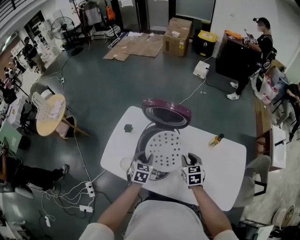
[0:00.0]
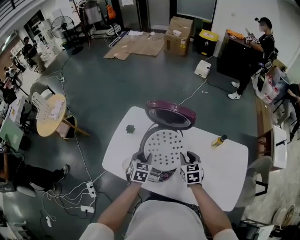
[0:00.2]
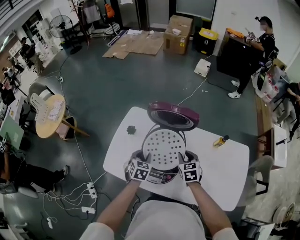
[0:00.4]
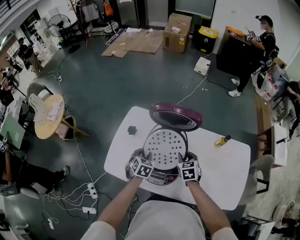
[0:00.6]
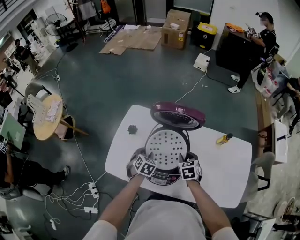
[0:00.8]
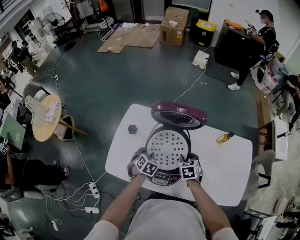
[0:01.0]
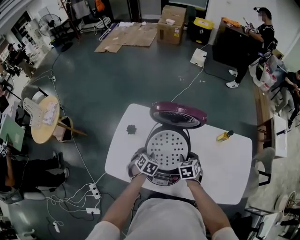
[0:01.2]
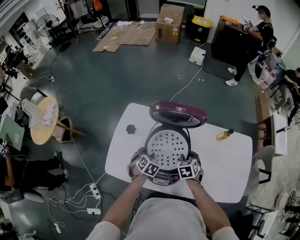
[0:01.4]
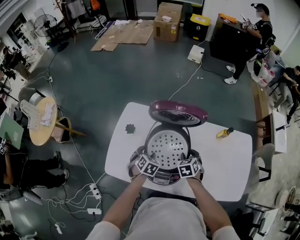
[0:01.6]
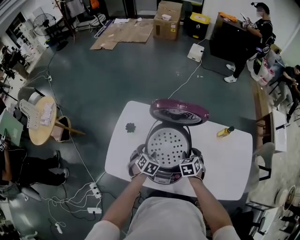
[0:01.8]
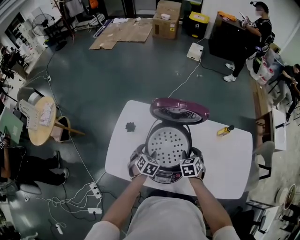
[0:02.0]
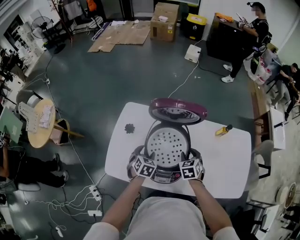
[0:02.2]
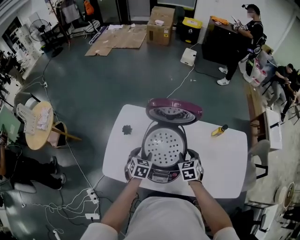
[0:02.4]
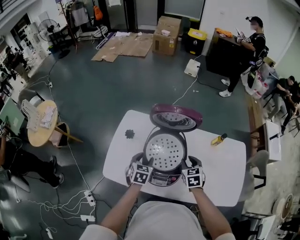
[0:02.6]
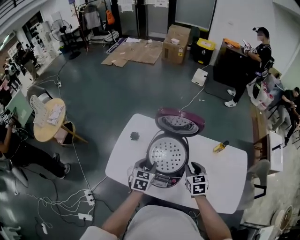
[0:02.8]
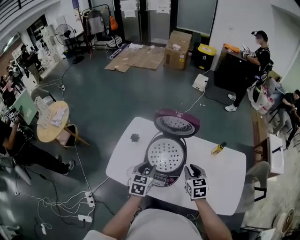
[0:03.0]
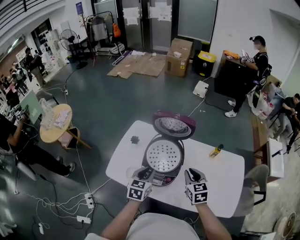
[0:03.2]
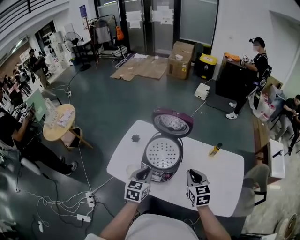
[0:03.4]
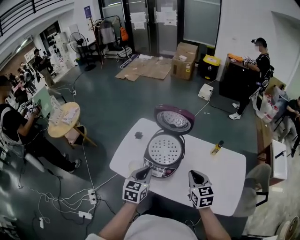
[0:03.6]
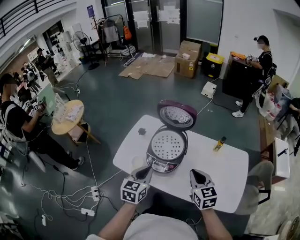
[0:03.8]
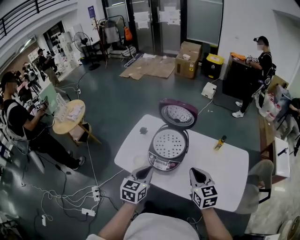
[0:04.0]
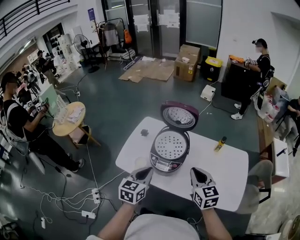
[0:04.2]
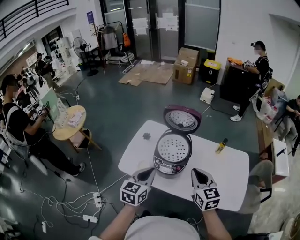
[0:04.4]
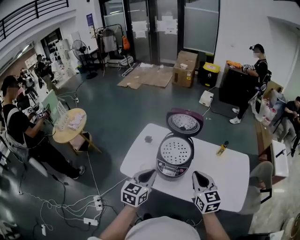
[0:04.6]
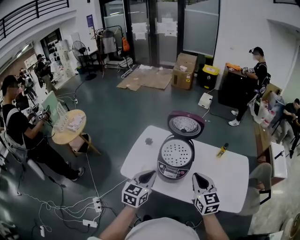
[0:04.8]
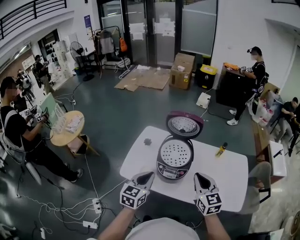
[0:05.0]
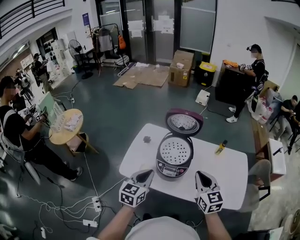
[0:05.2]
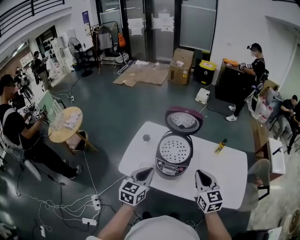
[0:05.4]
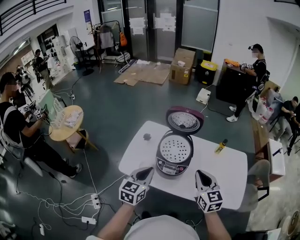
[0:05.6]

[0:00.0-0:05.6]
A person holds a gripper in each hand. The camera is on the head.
0:00.0 to 0:01.4: The left gripper heads downward, to the left and forward, covering about 10 cm, and swivels roughly 20 degrees, while the right gripper moves downward and to the left, some 10 cm, and swivels roughly 20 degrees.
0:01.4 to 0:02.8: The left gripper is displaced upward and backward by some 10 cm, and rotates approximately 30 degrees, while the right gripper shifts roughly 10 cm upward.
0:02.8 to 0:04.2: The two grippers go some 25 cm backward and upward. The right gripper changes its angle by roughly 20 degrees, and closes up. The left gripper closes its fingers.
0:04.2 to 0:05.6: The left gripper travels to the left by some 5 cm.

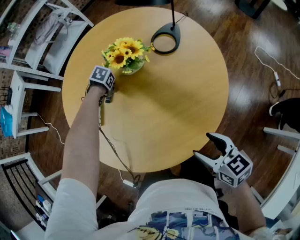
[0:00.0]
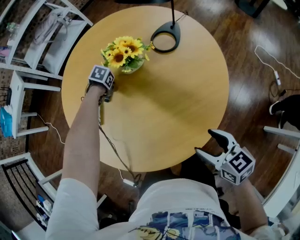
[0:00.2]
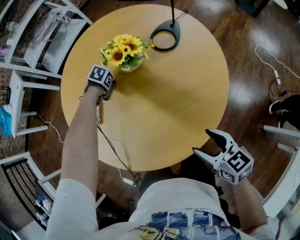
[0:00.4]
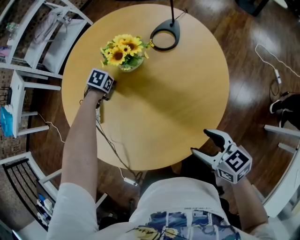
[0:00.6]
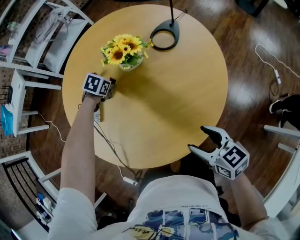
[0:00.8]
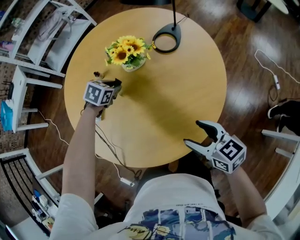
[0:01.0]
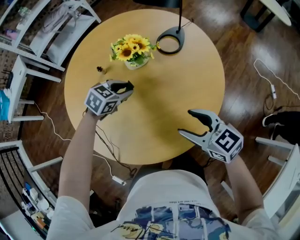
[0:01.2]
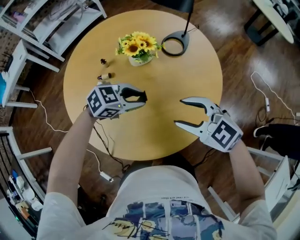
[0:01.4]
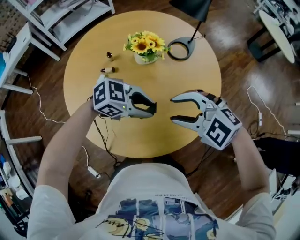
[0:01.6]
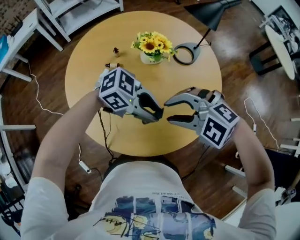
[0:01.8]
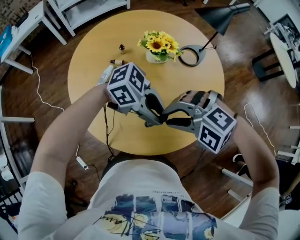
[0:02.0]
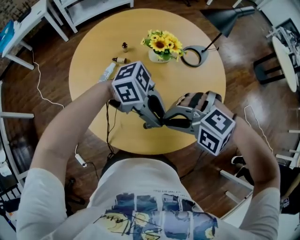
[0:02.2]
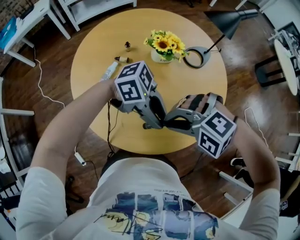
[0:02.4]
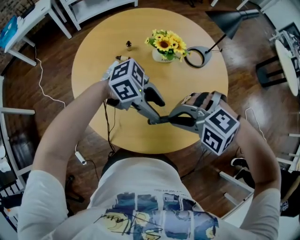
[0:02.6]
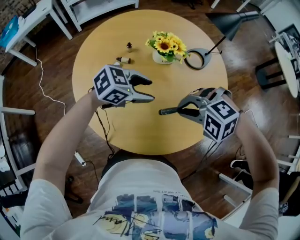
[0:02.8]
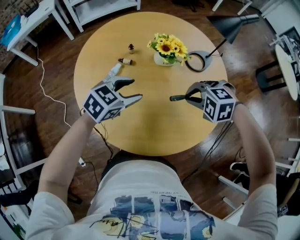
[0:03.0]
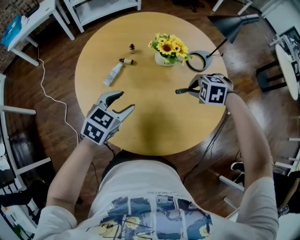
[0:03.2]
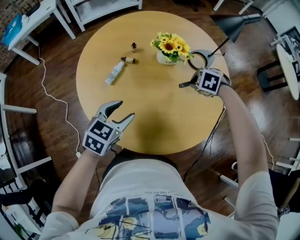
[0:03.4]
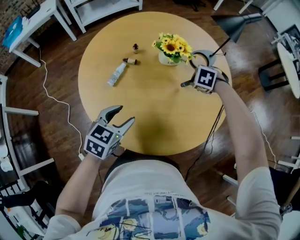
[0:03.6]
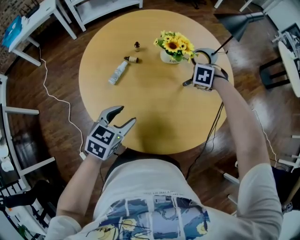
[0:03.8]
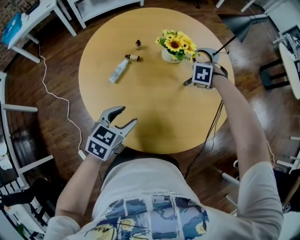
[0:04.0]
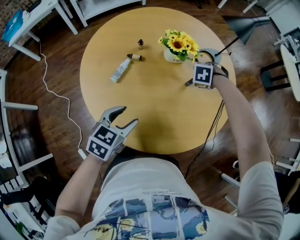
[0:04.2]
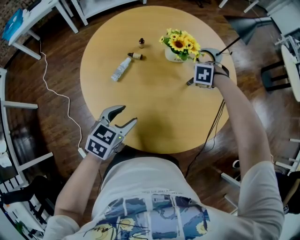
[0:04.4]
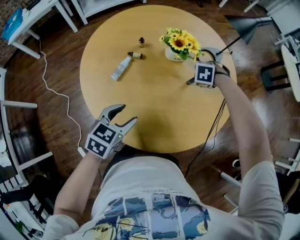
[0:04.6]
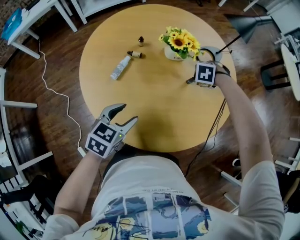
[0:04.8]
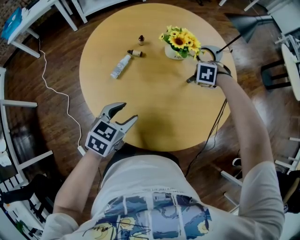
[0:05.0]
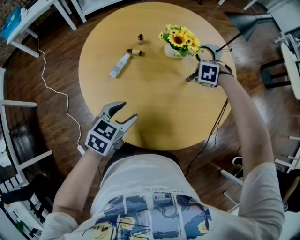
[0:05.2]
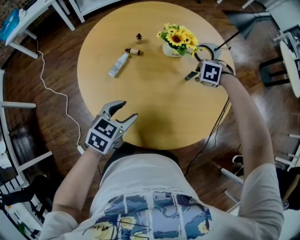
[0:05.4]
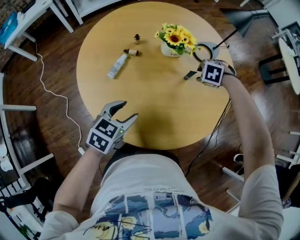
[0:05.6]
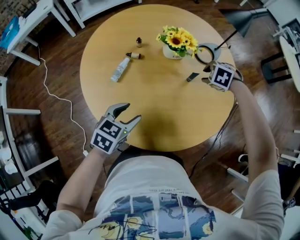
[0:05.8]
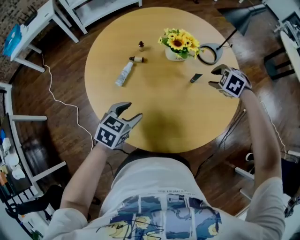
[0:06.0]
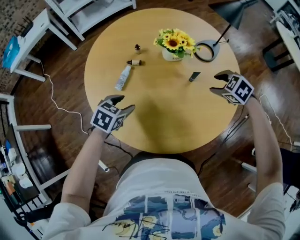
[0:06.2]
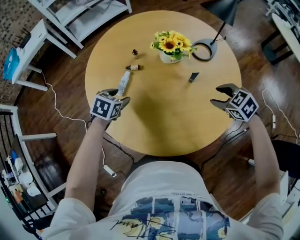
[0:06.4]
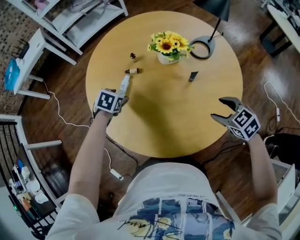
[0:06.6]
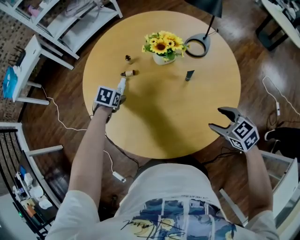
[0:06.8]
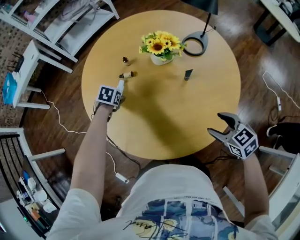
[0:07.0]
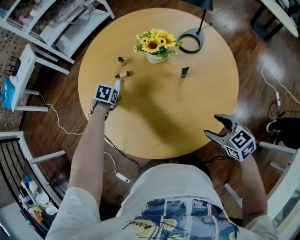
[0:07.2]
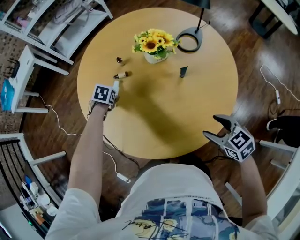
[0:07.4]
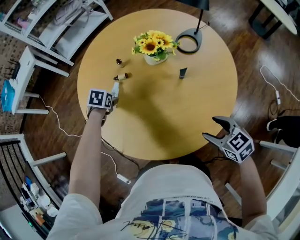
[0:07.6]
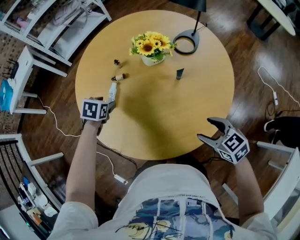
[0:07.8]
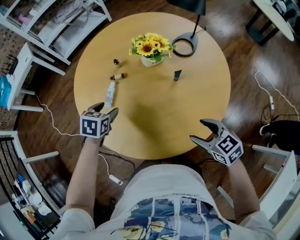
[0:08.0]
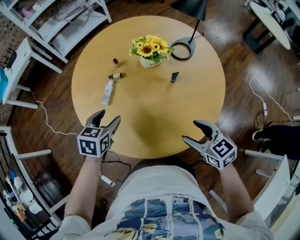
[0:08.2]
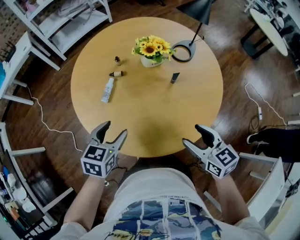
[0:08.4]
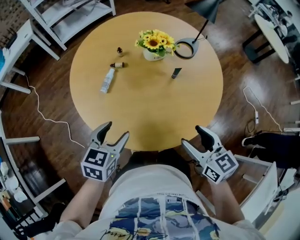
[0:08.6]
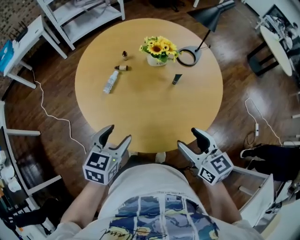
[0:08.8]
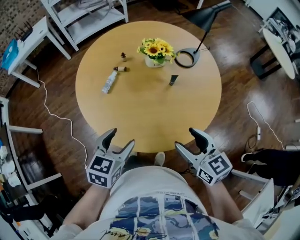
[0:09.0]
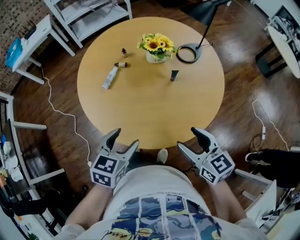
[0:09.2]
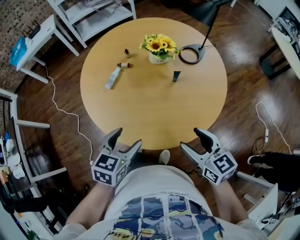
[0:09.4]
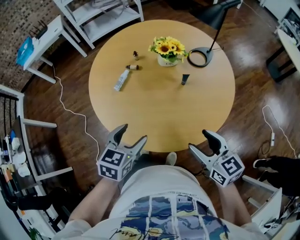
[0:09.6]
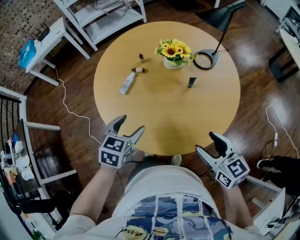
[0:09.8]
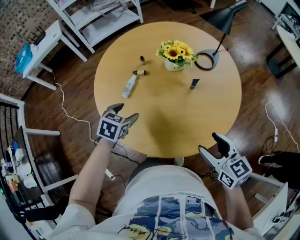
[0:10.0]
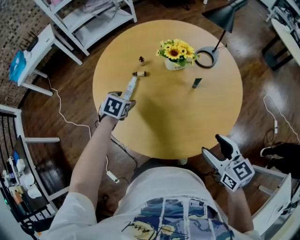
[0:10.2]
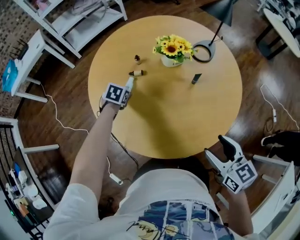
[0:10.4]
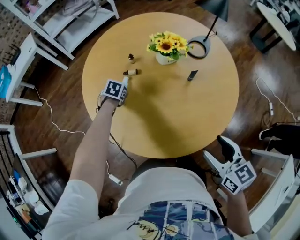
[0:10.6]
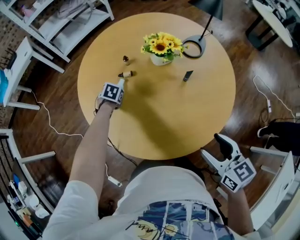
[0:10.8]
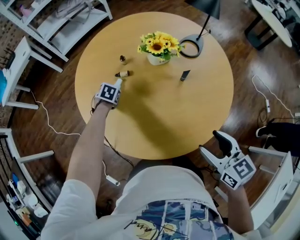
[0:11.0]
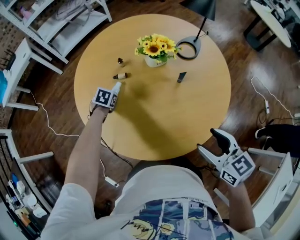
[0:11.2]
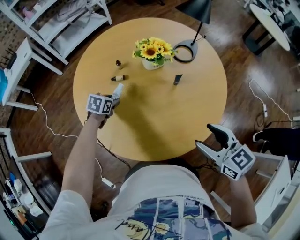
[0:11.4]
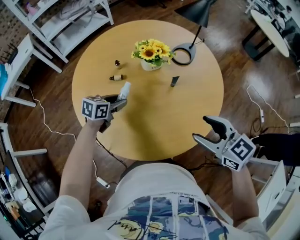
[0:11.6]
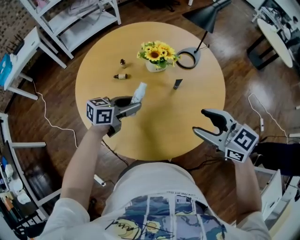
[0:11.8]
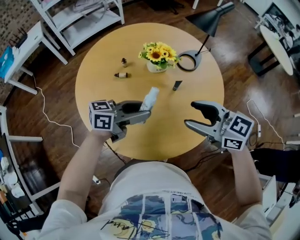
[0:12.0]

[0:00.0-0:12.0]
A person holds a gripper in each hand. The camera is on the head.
0:00.0 to 0:01.6: The left gripper changes place by approximately 40 cm, and tips its fingers upward by roughly 60 degrees. Meanwhile the right gripper ends up roughly 15 cm from where it was, and rotates around the line of its fingers by roughly 70 degrees, counterclockwise from behind.
0:01.6 to 0:03.0: The left gripper changes place by approximately 15 cm, swivels approximately 50 degrees, and opens its fingers; the right gripper heads downward, covering roughly 10 cm, points its fingers roughly 30 degrees further downward, and closes.
0:03.0 to 0:04.4: The left gripper shifts by some 15 cm. The right gripper shifts about 10 cm downward, and swivels about 30 degrees.
0:04.4 to 0:06.0: The right gripper moves upward, about 5 cm, changes its angle by about 30 degrees, and opens its fingers.
0:06.0 to 0:07.6: The left gripper changes place by approximately 25 cm, and swivels approximately 30 degrees. Meanwhile the right gripper moves approximately 20 cm, rolls clockwise, seen from behind, by approximately 40 degrees, and opens.
0:07.6 to 0:09.0: The right gripper shifts about 15 cm upward and backward, and changes its angle by roughly 20 degrees; the left gripper heads backward, upward and to the right, covering about 40 cm, and tips its fingers upward by about 40 degrees.
0:09.0 to 0:10.4: The left gripper travels forward and downward by some 35 cm, and changes its angle by about 30 degrees.
0:10.4 to 0:12.0: The right gripper moves approximately 10 cm, and rotates roughly 30 degrees; the left gripper shifts by roughly 35 cm, and tilts its fingers roughly 60 degrees upward.

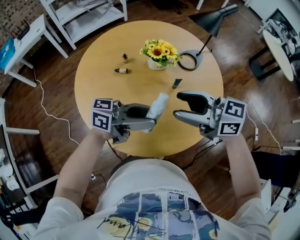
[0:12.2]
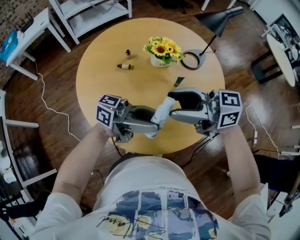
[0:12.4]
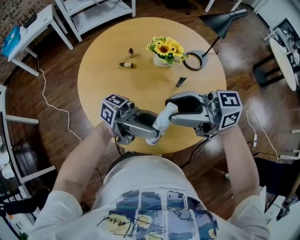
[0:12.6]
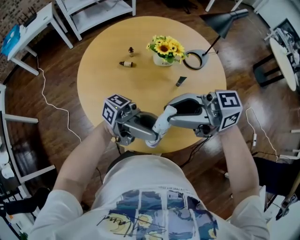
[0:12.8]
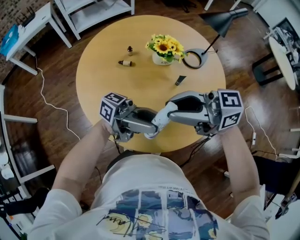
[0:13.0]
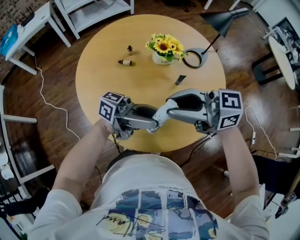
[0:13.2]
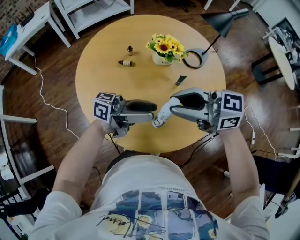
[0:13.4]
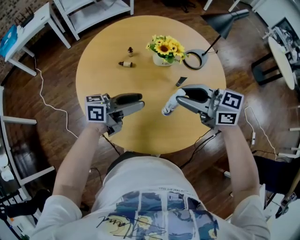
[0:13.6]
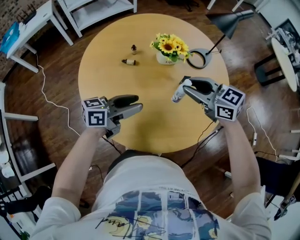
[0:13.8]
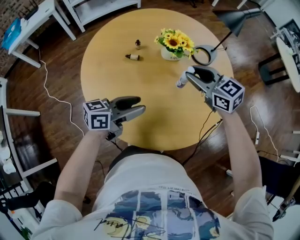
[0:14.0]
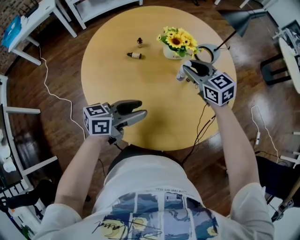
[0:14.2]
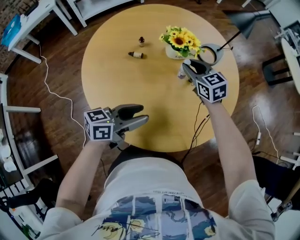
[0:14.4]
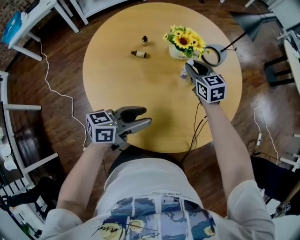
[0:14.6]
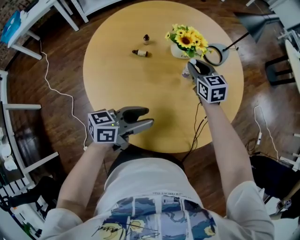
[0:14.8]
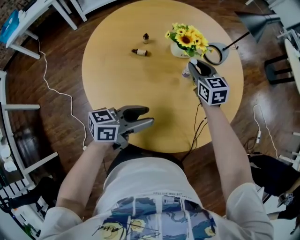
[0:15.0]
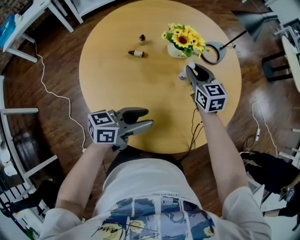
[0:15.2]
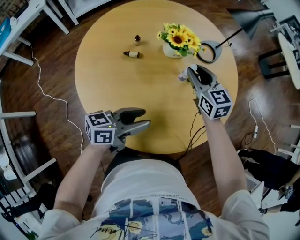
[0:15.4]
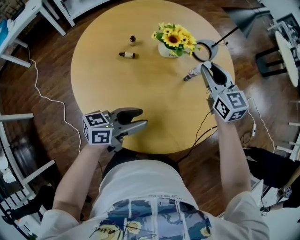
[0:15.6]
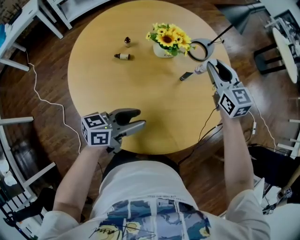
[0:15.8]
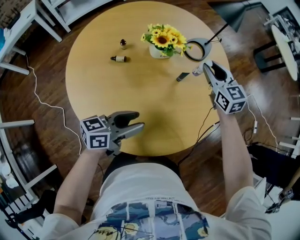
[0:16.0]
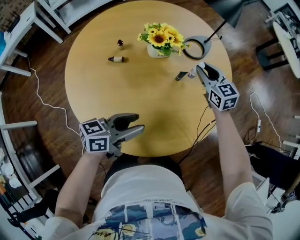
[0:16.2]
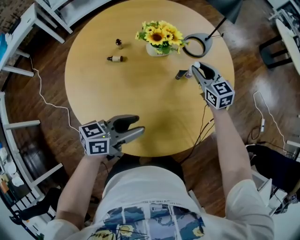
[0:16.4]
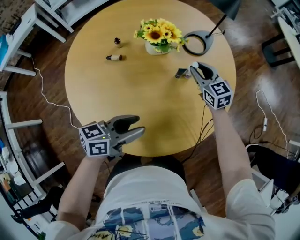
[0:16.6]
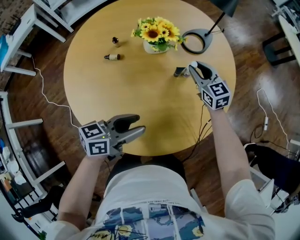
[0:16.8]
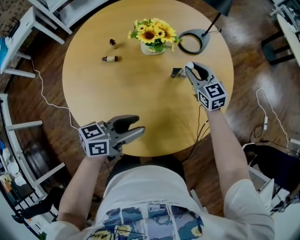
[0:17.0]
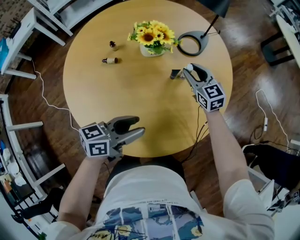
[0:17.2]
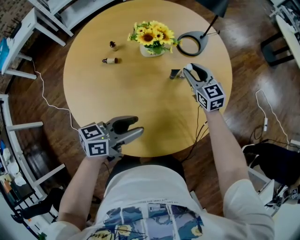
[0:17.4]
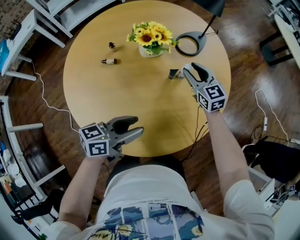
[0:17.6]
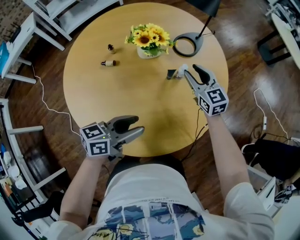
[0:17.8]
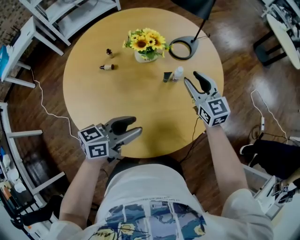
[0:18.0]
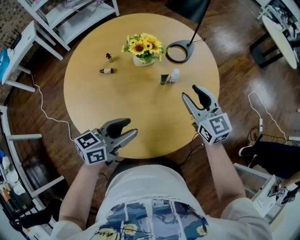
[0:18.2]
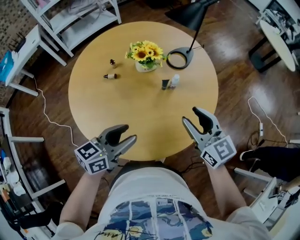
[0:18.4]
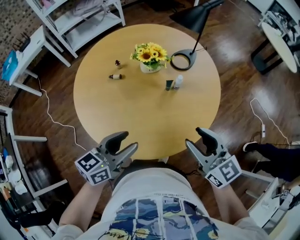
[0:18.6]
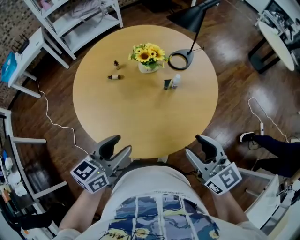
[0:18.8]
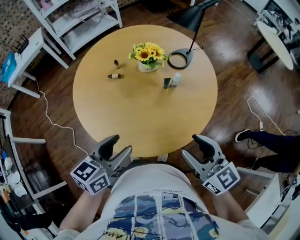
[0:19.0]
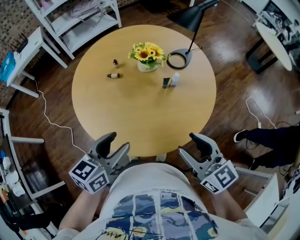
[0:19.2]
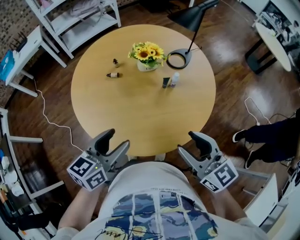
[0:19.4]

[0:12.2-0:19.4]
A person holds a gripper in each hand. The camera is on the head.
0:12.2 to 0:13.6: The right gripper closes up; the left gripper shifts by about 10 cm, and swivels roughly 20 degrees.
0:13.6 to 0:15.0: The left gripper heads downward, covering some 5 cm. Meanwhile the right gripper shifts by about 25 cm, and swivels roughly 40 degrees.
0:15.0 to 0:16.6: The right gripper travels to the right by approximately 15 cm, and reaches some 10 cm upward, then returns. The left gripper moves to the right, roughly 5 cm.
0:16.6 to 0:18.0: The right gripper heads upward and backward, covering some 10 cm.
0:18.0 to 0:19.4: The left gripper shifts approximately 15 cm upward, backward and to the left, and turns by roughly 30 degrees, while the right gripper heads backward and upward, covering approximately 30 cm.
